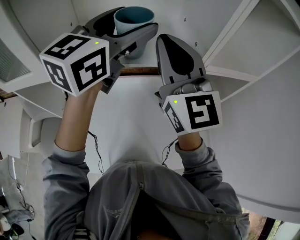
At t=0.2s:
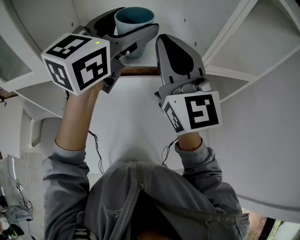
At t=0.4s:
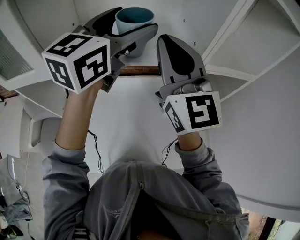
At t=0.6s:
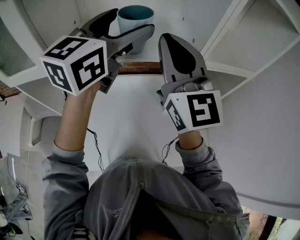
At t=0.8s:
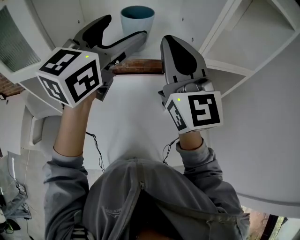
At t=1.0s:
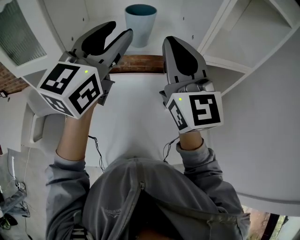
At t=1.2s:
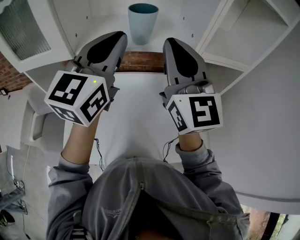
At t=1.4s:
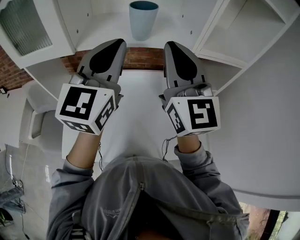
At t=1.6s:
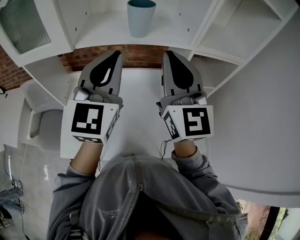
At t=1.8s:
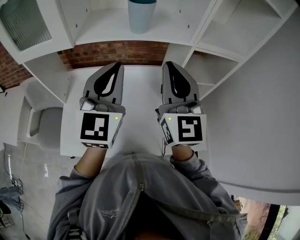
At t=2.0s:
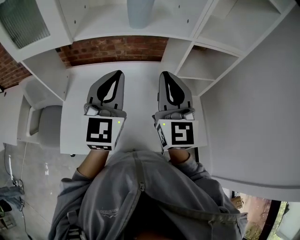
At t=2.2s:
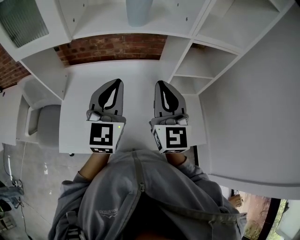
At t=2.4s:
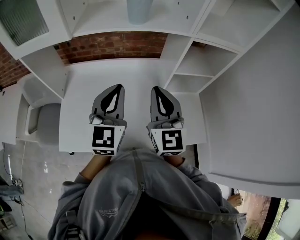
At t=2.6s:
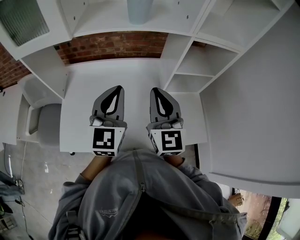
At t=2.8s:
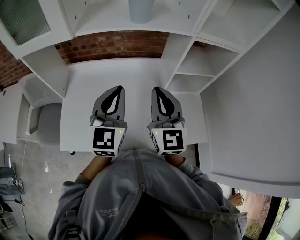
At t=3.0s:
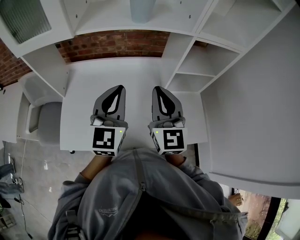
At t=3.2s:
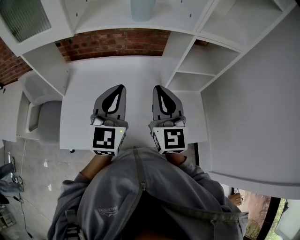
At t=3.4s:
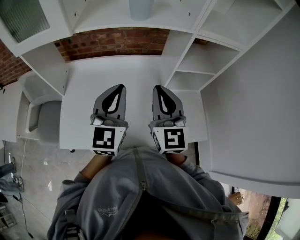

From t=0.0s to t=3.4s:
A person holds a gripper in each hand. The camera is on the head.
From t=0.0s to t=1.6s: Both grippers travel together backward, roughly 15 cm. The left gripper rotates roughly 30 degrees, and closes.
From t=1.6s to t=3.4s: The right gripper is displaced downward by approximately 15 cm. The left gripper travels downward and backward by some 15 cm.

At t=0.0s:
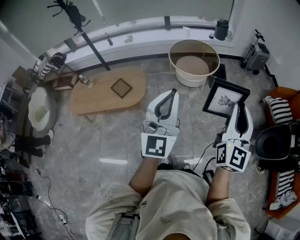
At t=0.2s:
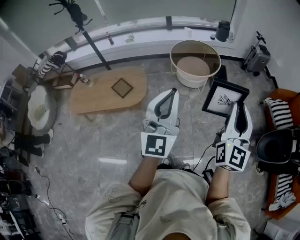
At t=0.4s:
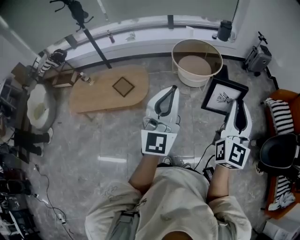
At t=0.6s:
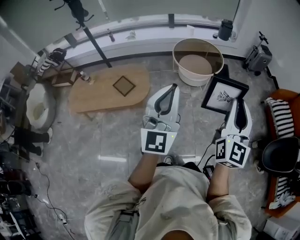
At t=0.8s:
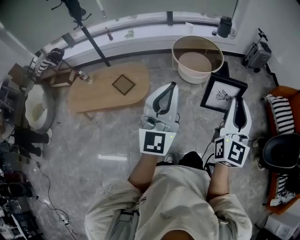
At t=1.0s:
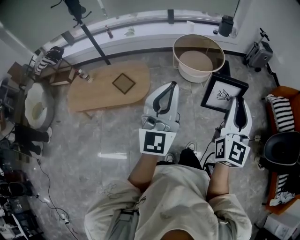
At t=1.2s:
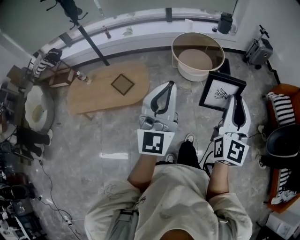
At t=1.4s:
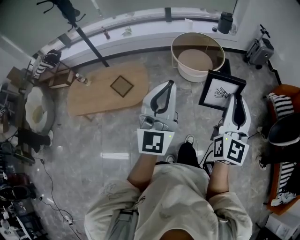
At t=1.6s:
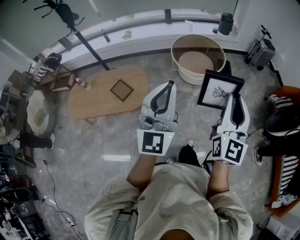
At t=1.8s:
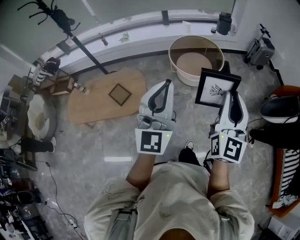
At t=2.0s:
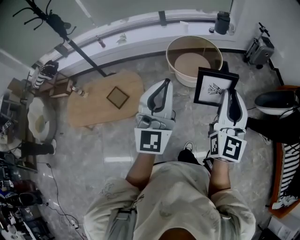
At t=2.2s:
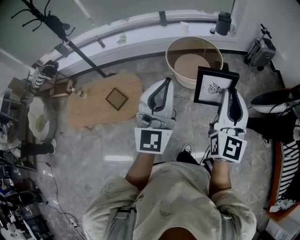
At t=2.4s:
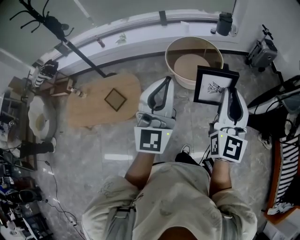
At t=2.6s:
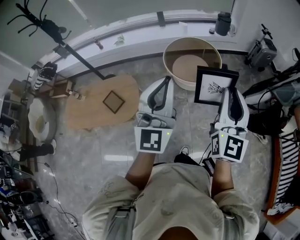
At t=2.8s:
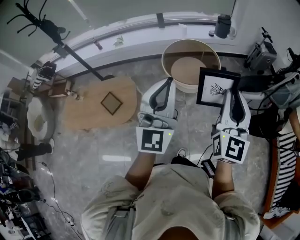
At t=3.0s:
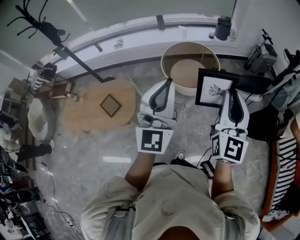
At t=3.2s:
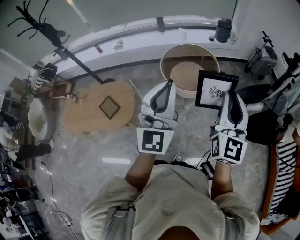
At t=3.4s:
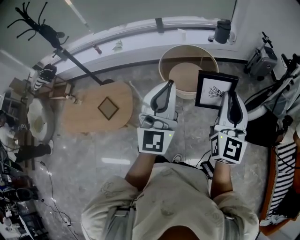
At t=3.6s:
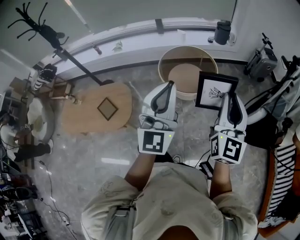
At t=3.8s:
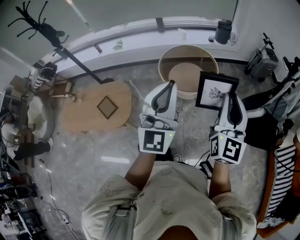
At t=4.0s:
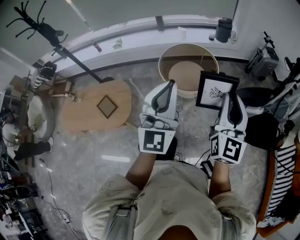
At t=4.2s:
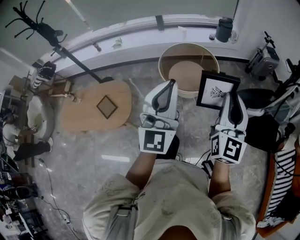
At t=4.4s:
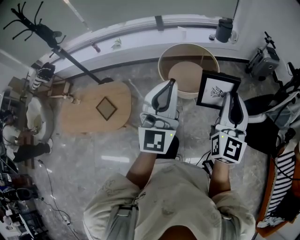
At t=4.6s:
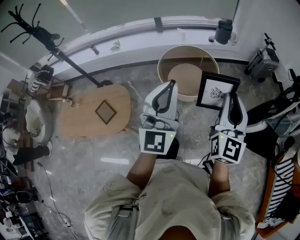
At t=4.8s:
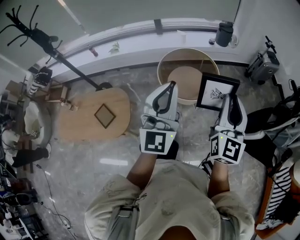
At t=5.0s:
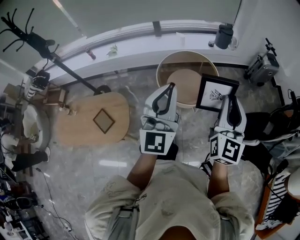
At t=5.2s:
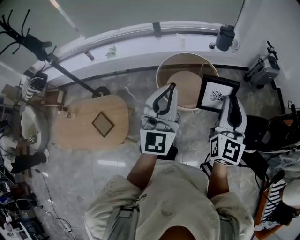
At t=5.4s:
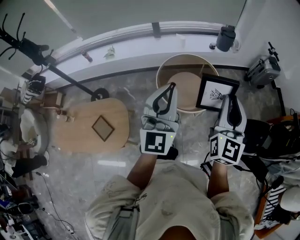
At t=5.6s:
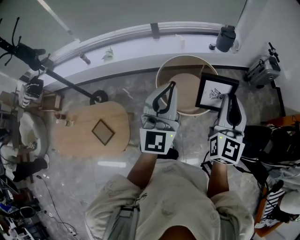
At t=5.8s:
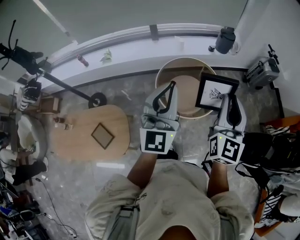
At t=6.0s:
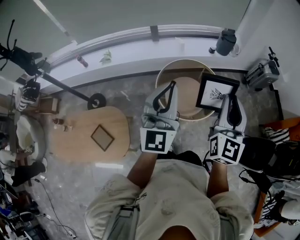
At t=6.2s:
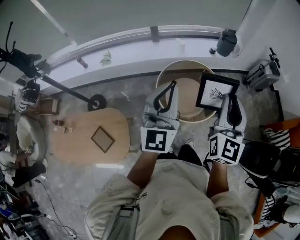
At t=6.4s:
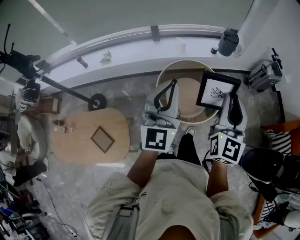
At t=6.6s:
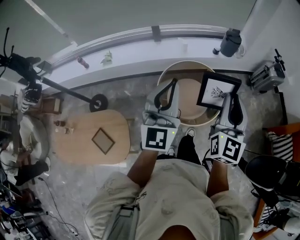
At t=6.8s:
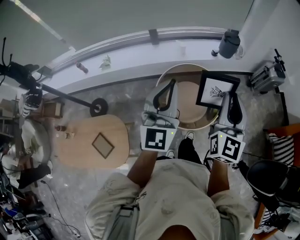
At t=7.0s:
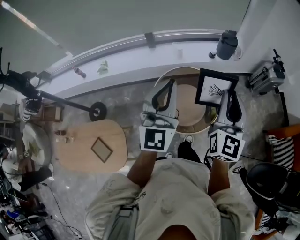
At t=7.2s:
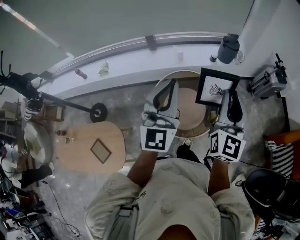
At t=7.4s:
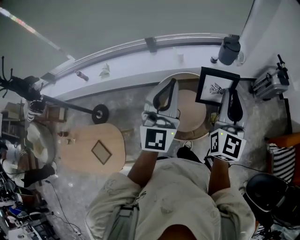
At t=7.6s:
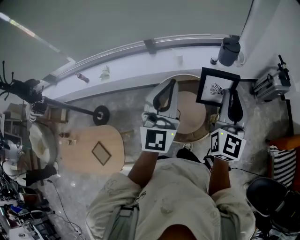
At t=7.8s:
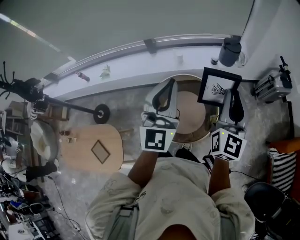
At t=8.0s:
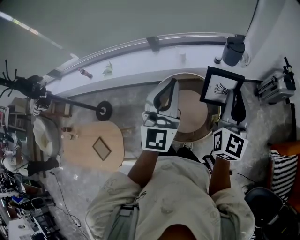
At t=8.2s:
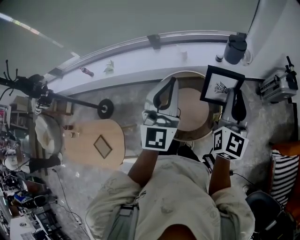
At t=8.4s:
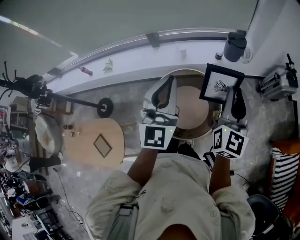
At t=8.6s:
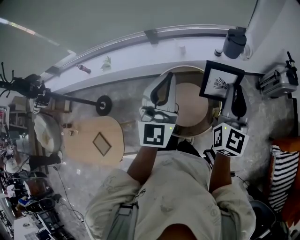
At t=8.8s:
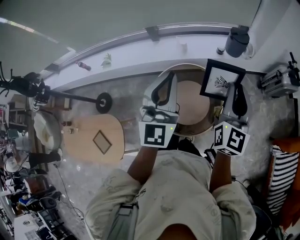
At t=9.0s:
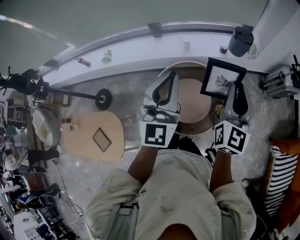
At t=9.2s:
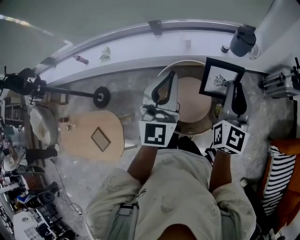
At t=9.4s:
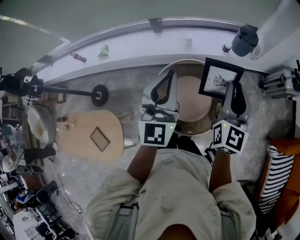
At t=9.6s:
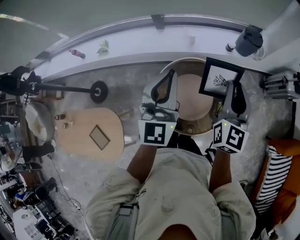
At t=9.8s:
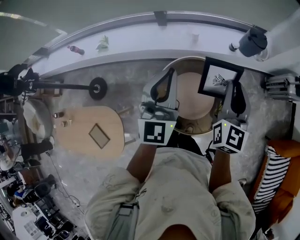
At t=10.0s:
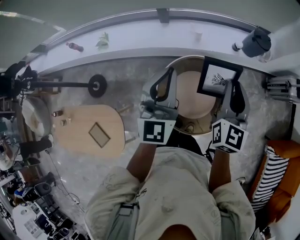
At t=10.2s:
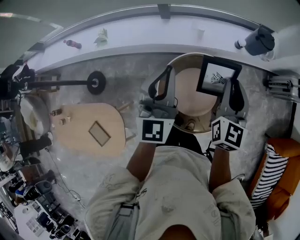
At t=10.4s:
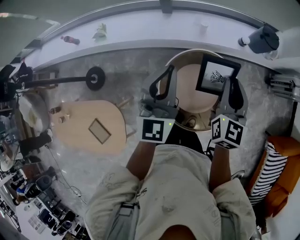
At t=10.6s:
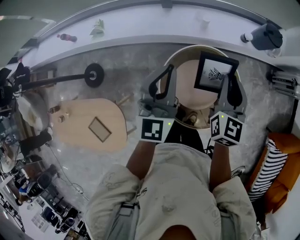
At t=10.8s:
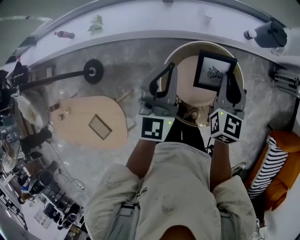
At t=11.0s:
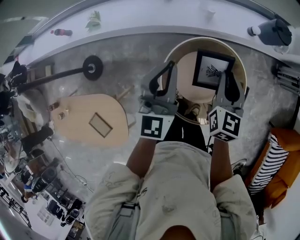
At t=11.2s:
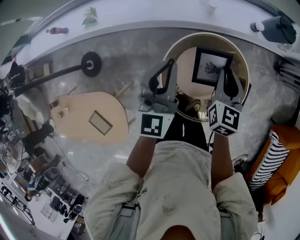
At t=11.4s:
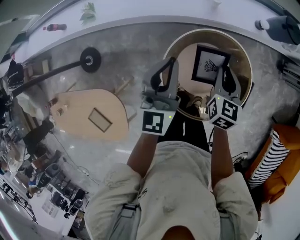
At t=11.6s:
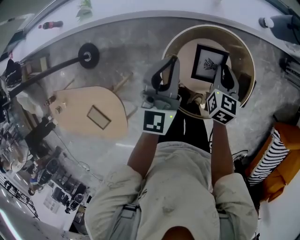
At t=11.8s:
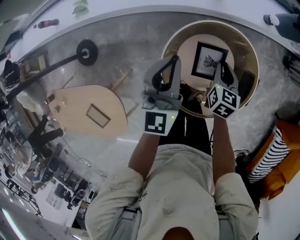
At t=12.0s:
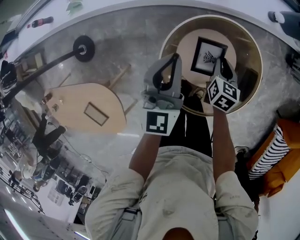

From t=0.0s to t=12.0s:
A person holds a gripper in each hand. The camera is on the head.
From t=0.0s to t=1.6s: The grippers both shift forward and to the left by some 15 cm.
From t=1.6s to t=3.0s: The two grippers go approximately 20 cm forward and to the right.
From t=3.0s to t=4.4s: The two grippers go about 5 cm forward.
From t=4.4s to t=6.0s: Both grippers travel together forward and to the left, some 30 cm.
From t=6.0s to t=7.6s: The grippers both shift forward and to the right by approximately 25 cm.
From t=7.6s to t=9.0s: The left gripper moves some 5 cm; the right gripper heads forward and downward, covering about 10 cm.
From t=9.0s to t=10.4s: The two grippers go about 25 cm to the left, downward and forward.
From t=10.4s to t=12.0s: The right gripper moves downward, some 35 cm, and tilts its fingers roughly 40 degrees downward, while the left gripper moves downward, roughly 25 cm.

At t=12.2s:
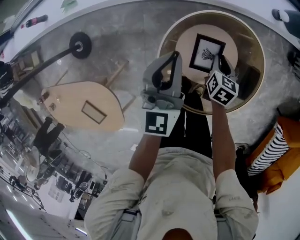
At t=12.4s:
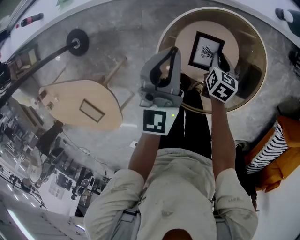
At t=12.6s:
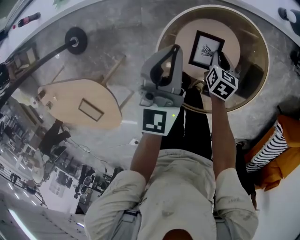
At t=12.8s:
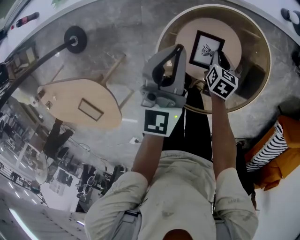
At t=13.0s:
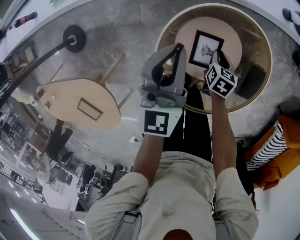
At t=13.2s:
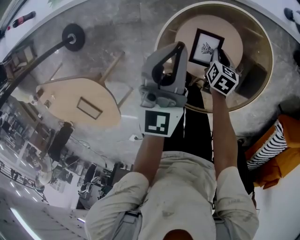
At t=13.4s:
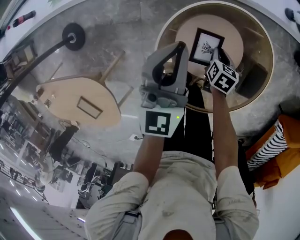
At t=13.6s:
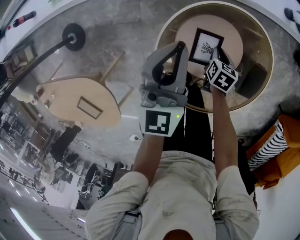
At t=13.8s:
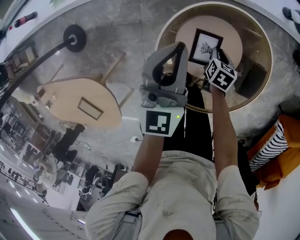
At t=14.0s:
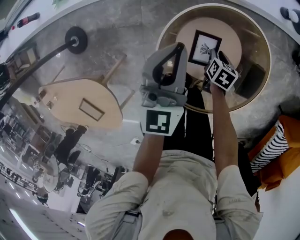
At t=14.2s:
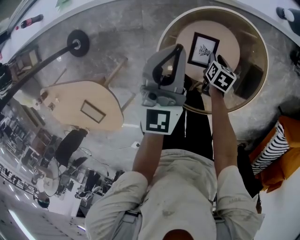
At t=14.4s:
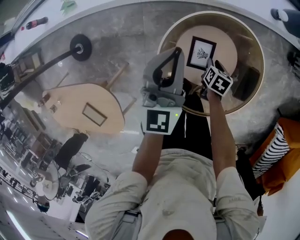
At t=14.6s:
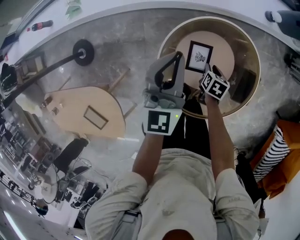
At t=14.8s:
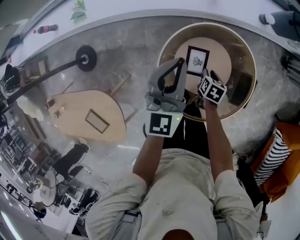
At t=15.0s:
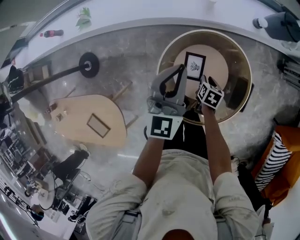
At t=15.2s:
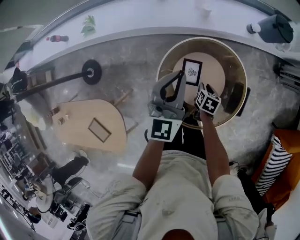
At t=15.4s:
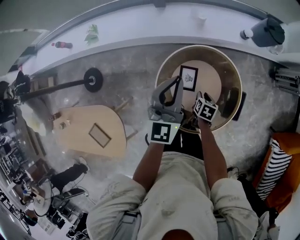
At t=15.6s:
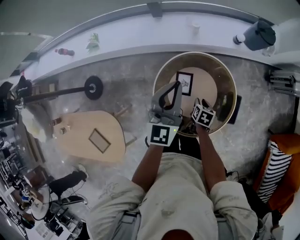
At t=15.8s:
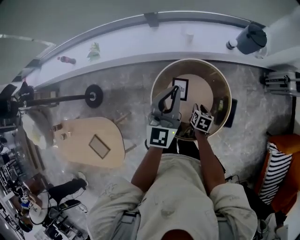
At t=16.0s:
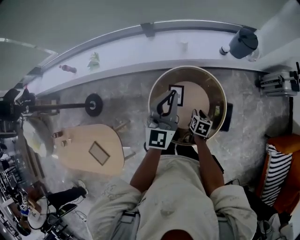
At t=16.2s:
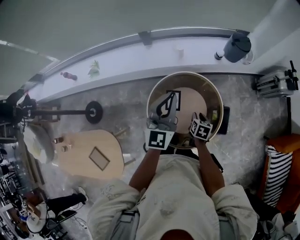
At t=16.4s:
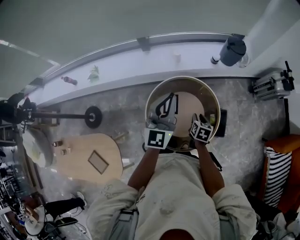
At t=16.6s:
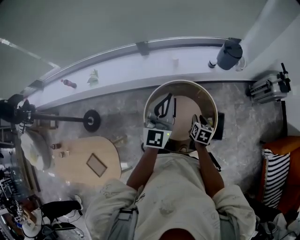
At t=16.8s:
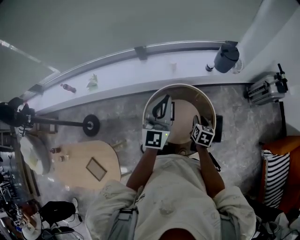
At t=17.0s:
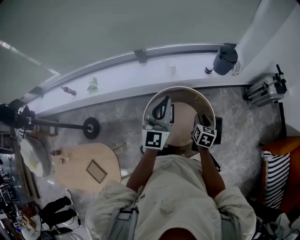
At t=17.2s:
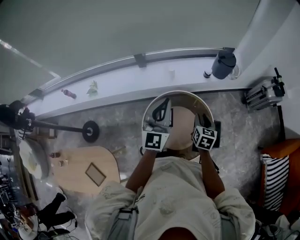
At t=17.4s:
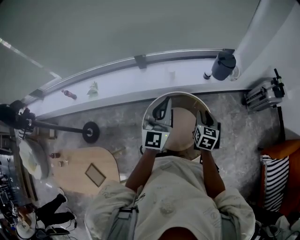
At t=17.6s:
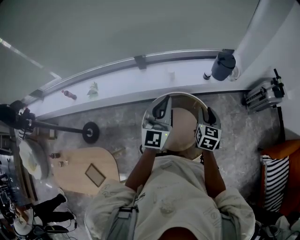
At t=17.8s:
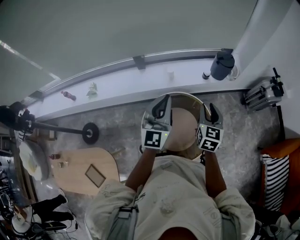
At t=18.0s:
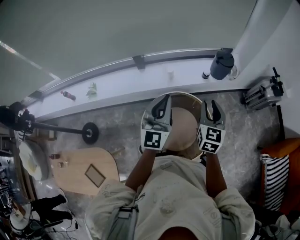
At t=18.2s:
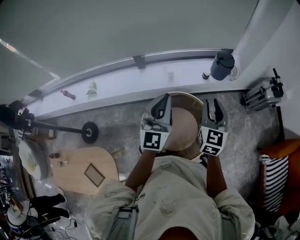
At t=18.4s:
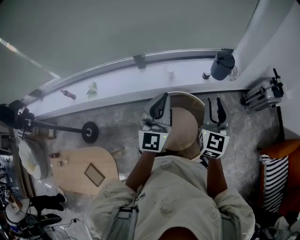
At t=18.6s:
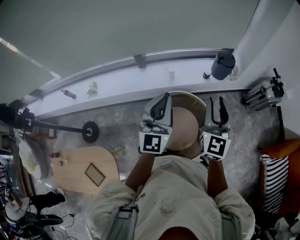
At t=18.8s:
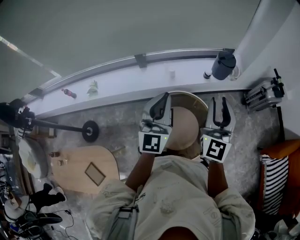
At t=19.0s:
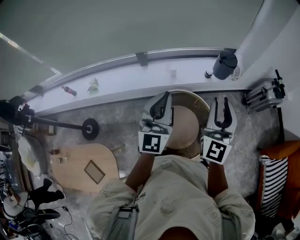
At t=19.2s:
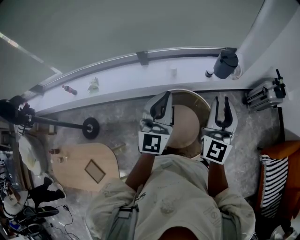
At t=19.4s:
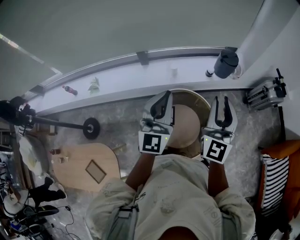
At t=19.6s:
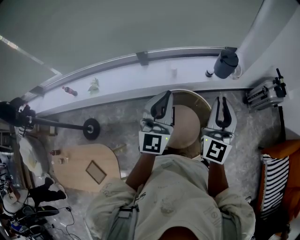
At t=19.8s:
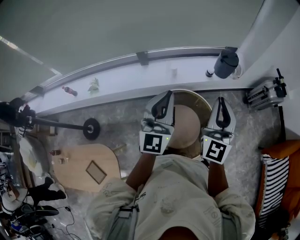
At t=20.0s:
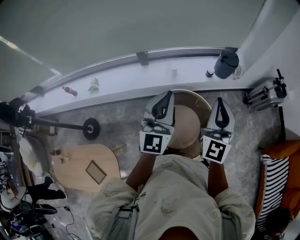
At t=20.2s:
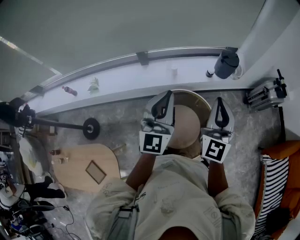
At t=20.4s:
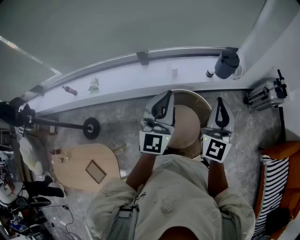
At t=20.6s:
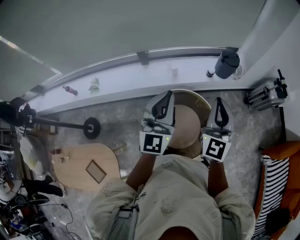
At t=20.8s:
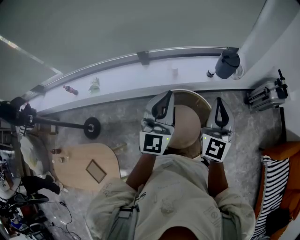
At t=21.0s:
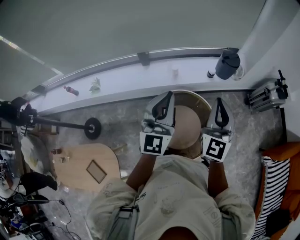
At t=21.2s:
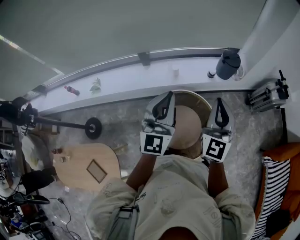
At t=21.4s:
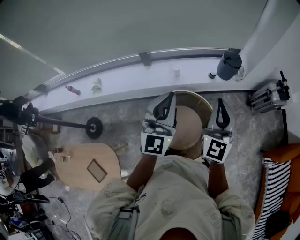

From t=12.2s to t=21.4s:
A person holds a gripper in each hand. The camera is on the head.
From t=12.2s to t=13.8s: The right gripper travels downward by about 10 cm.
From t=13.8s to t=15.2s: Both grippers move upward and backward, about 15 cm.
From t=15.2s to t=16.8s: The left gripper is displaced upward, to the right and backward by roughly 20 cm. The right gripper shifts some 25 cm upward and to the right, and rotates some 20 degrees.
From t=16.8s to t=18.4s: The left gripper travels upward by some 5 cm, while the right gripper heads upward, covering some 30 cm, and angles its fingers upward, by some 40 degrees.
From t=18.4s to t=19.8s: The right gripper goes some 5 cm upward, and closes its fingers.
From t=19.8s to t=21.4s: The grippers stay close to where they were, moving slightly.
